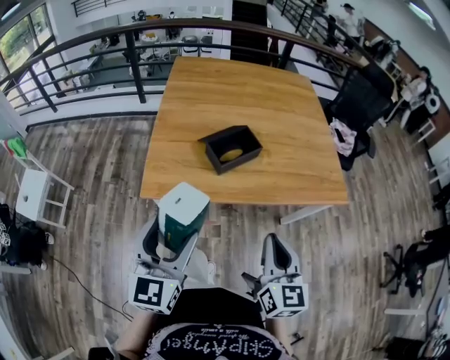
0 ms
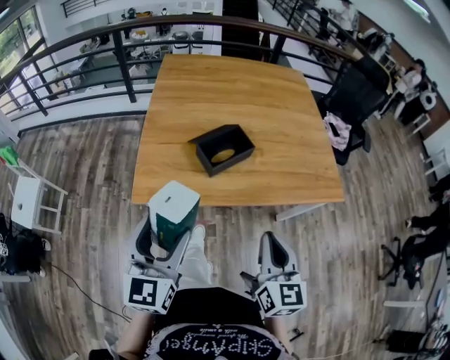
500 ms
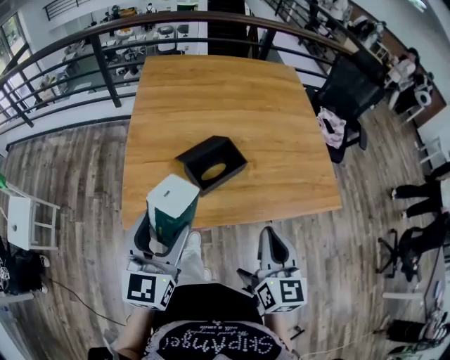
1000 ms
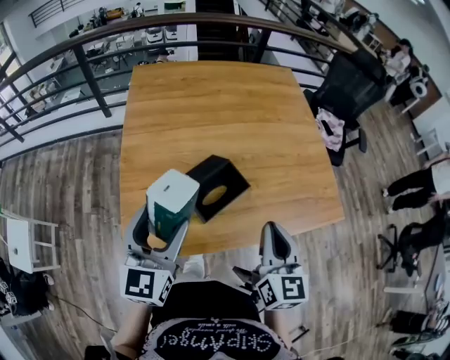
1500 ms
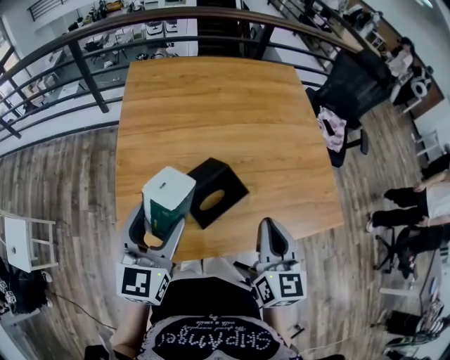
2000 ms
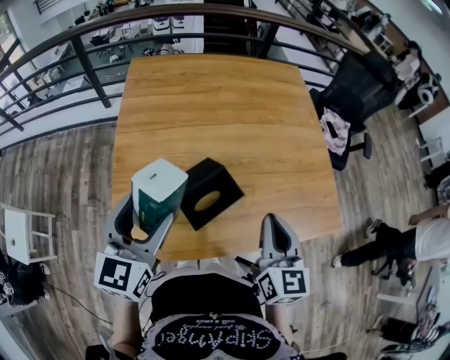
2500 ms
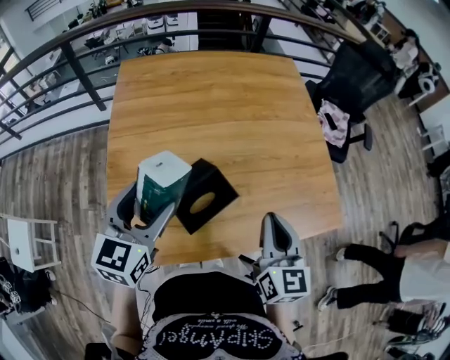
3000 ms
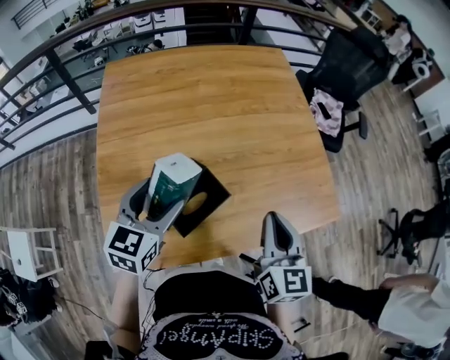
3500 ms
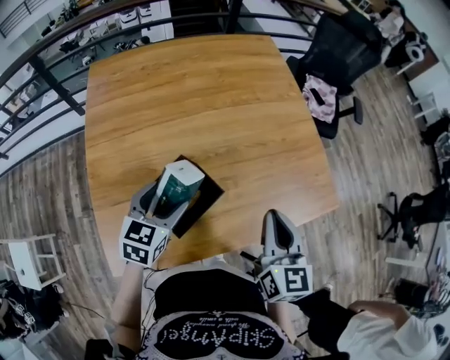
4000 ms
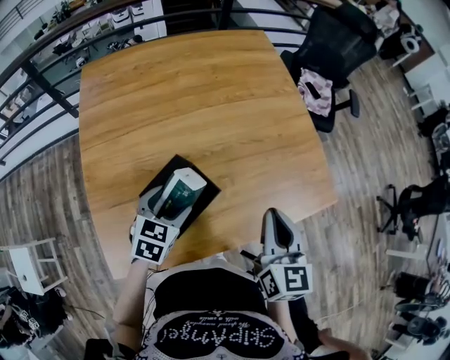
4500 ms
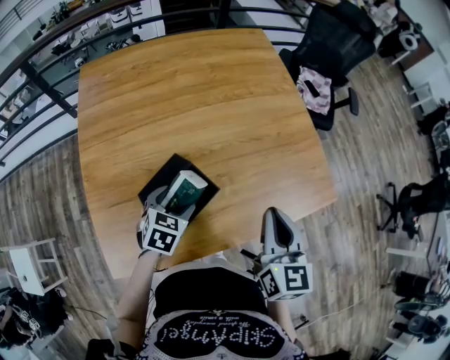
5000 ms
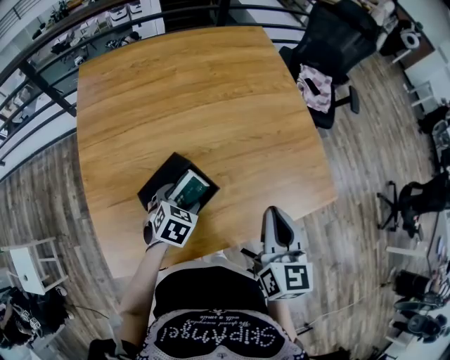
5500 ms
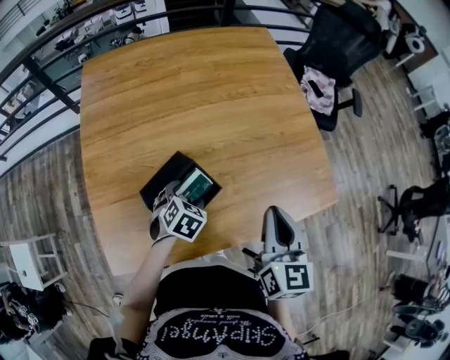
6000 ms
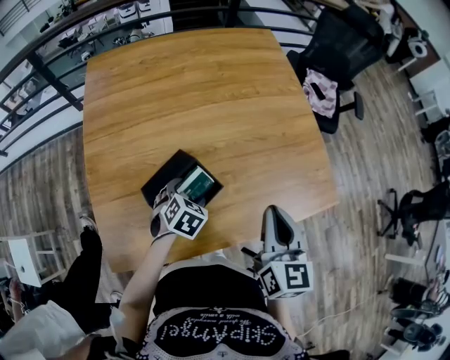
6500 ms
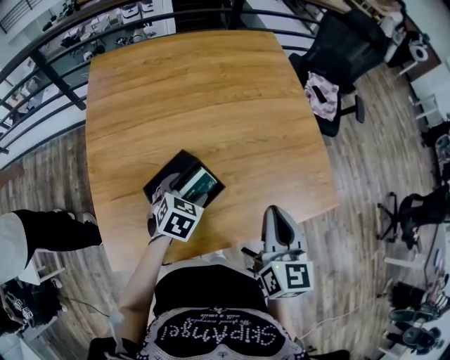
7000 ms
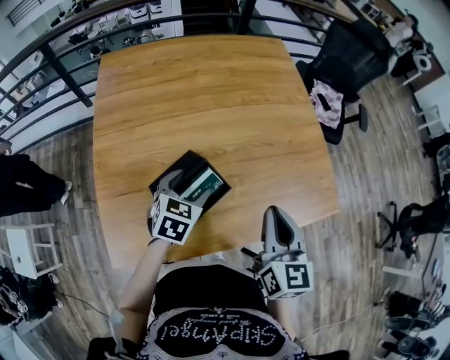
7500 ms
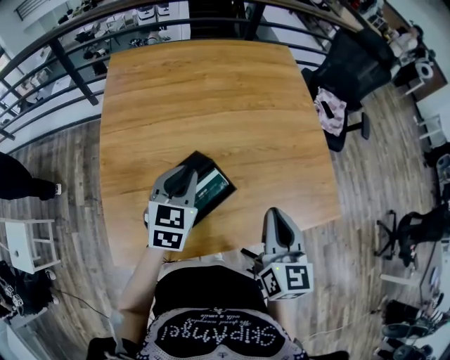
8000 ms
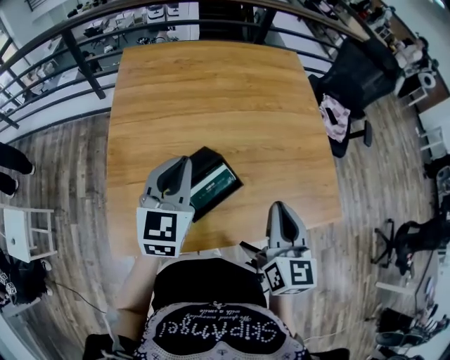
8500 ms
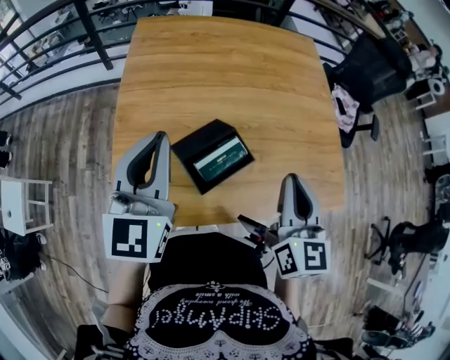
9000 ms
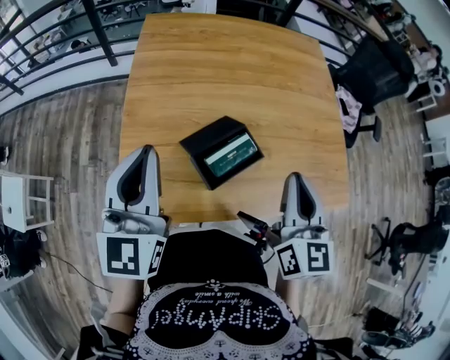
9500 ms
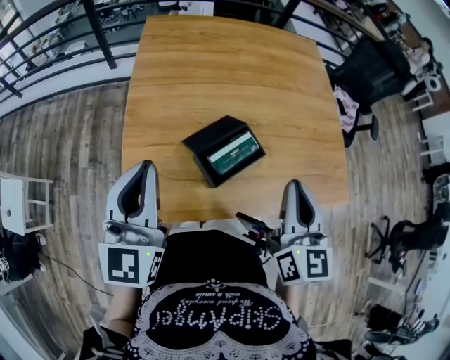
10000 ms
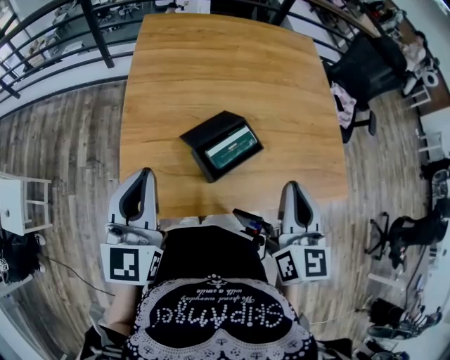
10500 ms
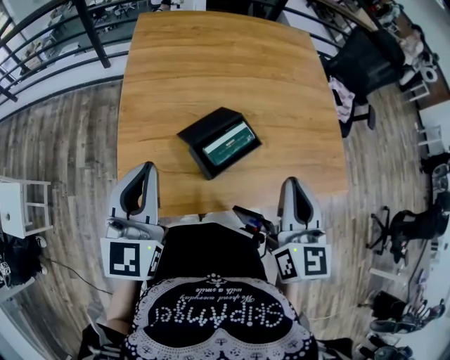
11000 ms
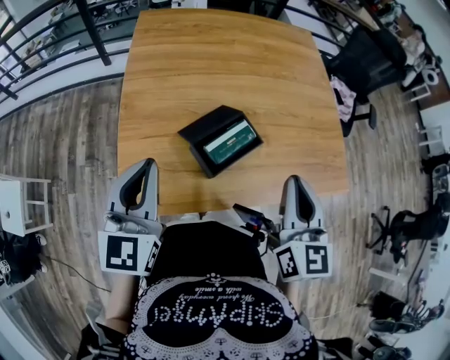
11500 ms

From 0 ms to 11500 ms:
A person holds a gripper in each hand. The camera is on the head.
From 0 ms to 2000 ms: Both grippers move forward, some 25 cm.
From 2000 ms to 4000 ms: The left gripper travels downward, forward and to the right by approximately 20 cm, and swivels roughly 30 degrees, while the right gripper moves to the right and forward, about 10 cm.
From 4000 ms to 6000 ms: The left gripper is displaced downward and to the right by approximately 15 cm, and rotates roughly 30 degrees.
From 6000 ms to 7500 ms: The left gripper shifts approximately 10 cm upward, and swivels about 20 degrees.
From 7500 ms to 9500 ms: The right gripper shifts roughly 10 cm to the left and upward. The left gripper travels upward, to the left and backward by roughly 30 cm, points its fingers approximately 40 degrees further upward, and closes its fingers.
From 9500 ms to 11500 ms: The left gripper shifts approximately 5 cm downward.

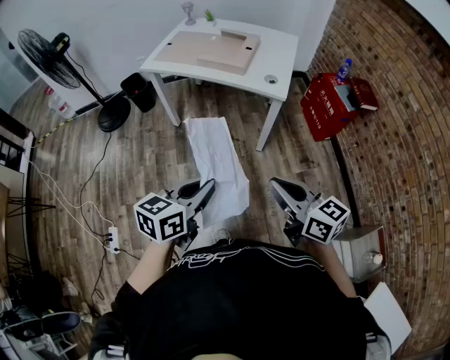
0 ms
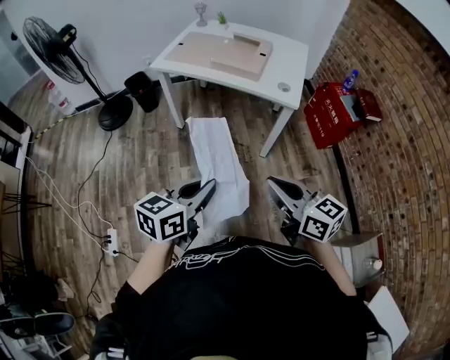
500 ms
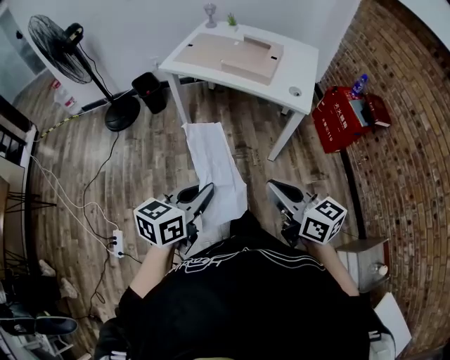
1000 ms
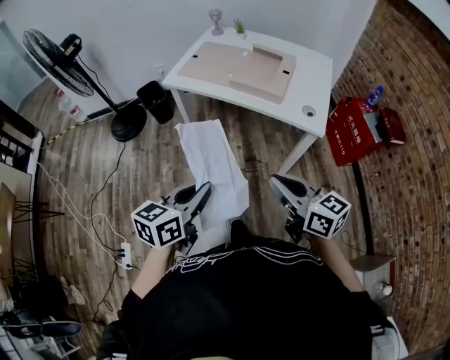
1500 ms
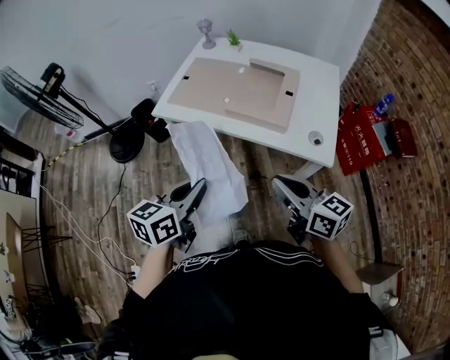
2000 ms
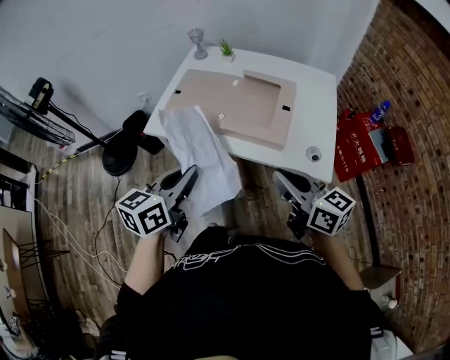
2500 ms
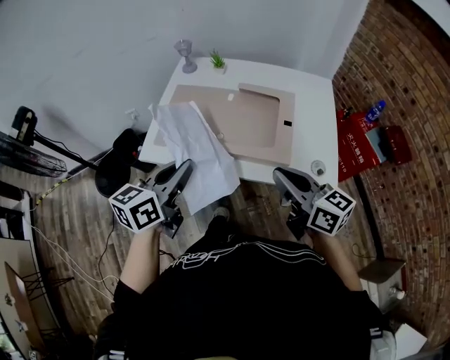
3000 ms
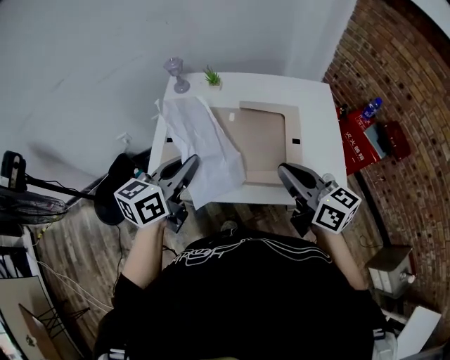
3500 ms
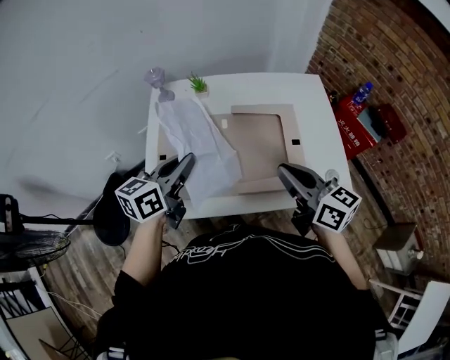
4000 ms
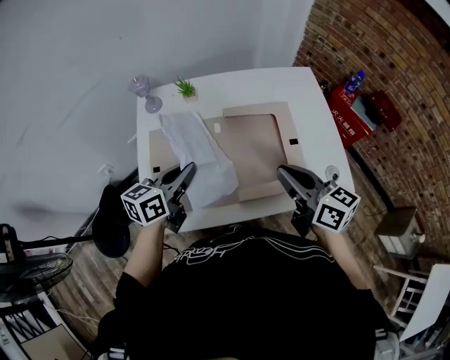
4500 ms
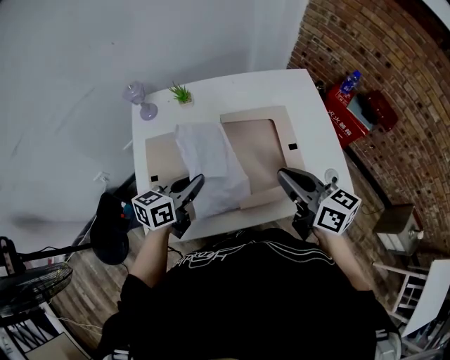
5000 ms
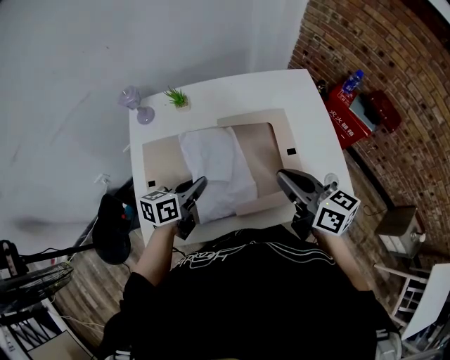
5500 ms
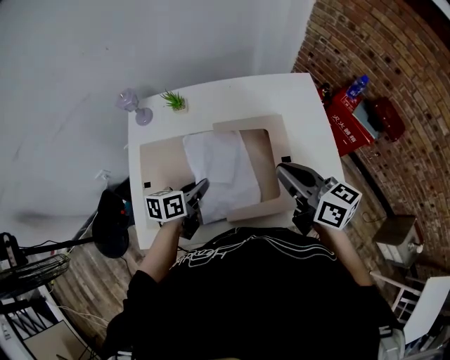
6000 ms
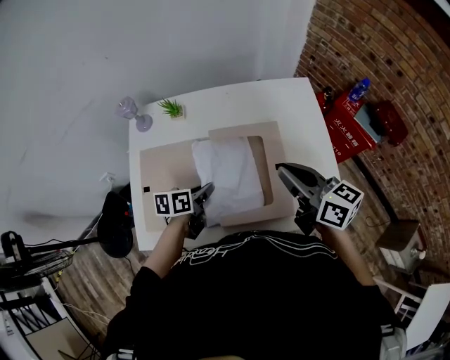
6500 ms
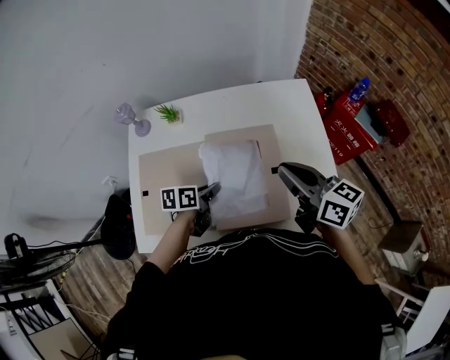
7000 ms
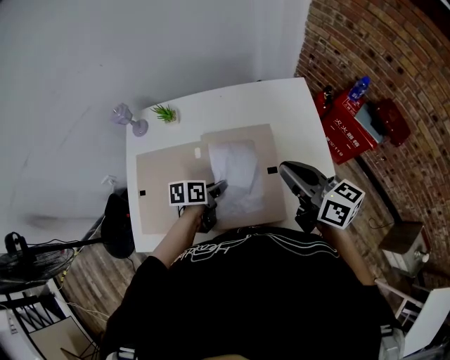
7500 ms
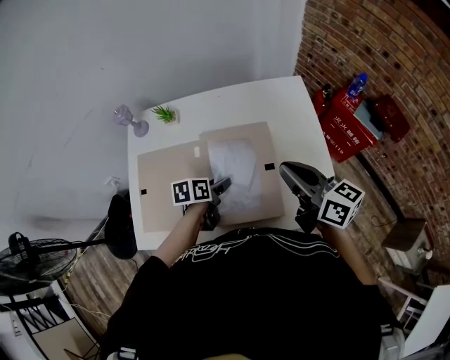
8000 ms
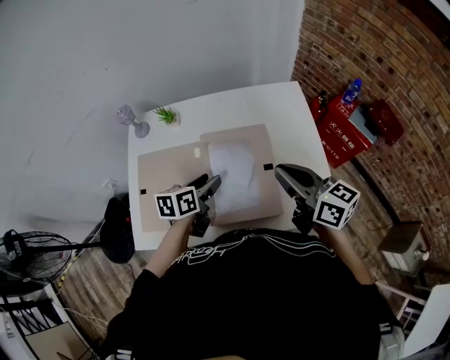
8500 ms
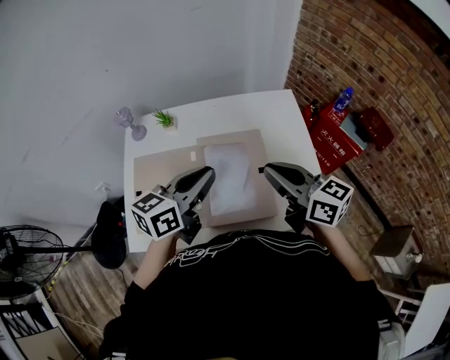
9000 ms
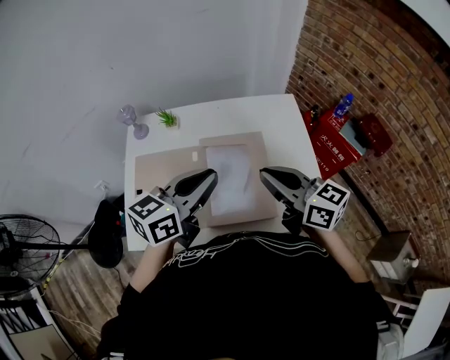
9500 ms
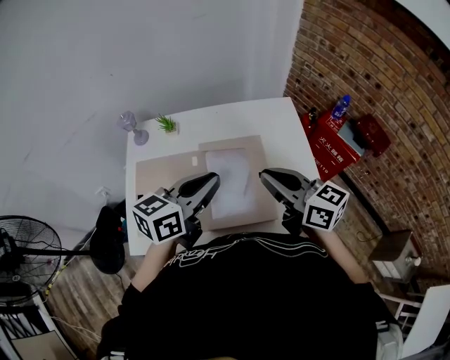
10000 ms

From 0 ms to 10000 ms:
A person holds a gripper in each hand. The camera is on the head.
From 0 ms to 2000 ms: The right gripper goes about 35 cm forward; the left gripper heads forward and to the left, covering about 35 cm.
From 2000 ms to 4000 ms: The left gripper changes place by approximately 40 cm, and swivels approximately 30 degrees. Meanwhile the right gripper shifts by roughly 30 cm, and turns by approximately 30 degrees.
From 4000 ms to 6000 ms: The right gripper heads forward, covering some 10 cm, while the left gripper shifts roughly 15 cm downward, and swivels approximately 20 degrees.
From 6000 ms to 8000 ms: Both grippers travel together to the right, about 10 cm. The left gripper opens its fingers.
From 8000 ms to 10000 ms: The left gripper is displaced upward by roughly 25 cm, points its fingers approximately 30 degrees further upward, and closes, while the right gripper travels to the left and upward by roughly 5 cm.

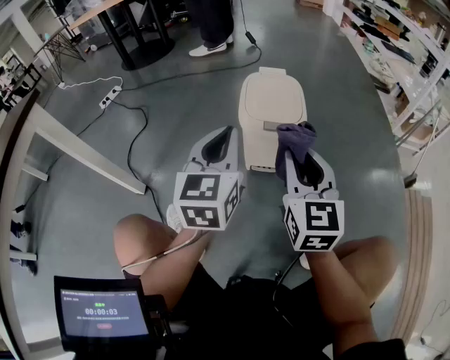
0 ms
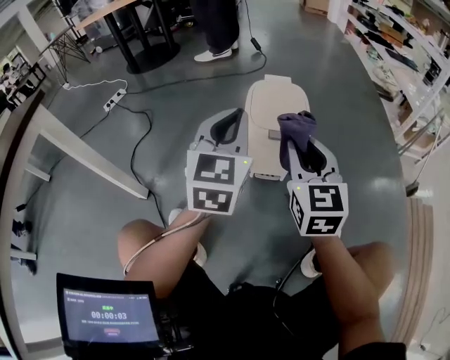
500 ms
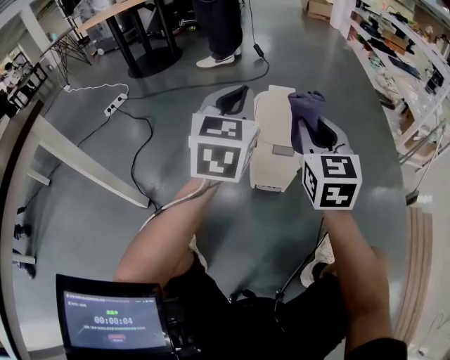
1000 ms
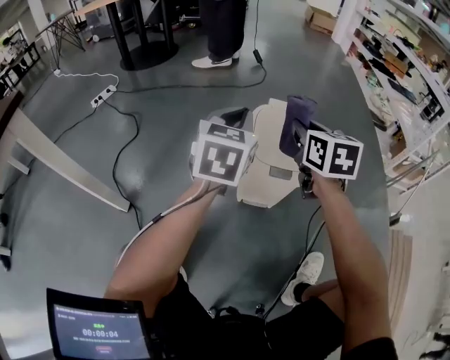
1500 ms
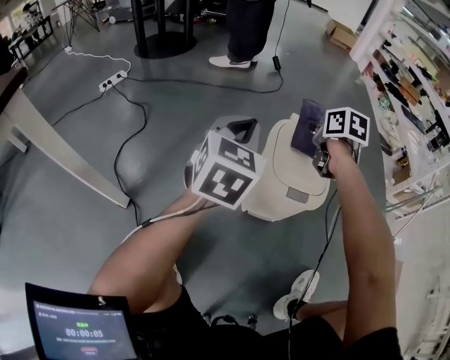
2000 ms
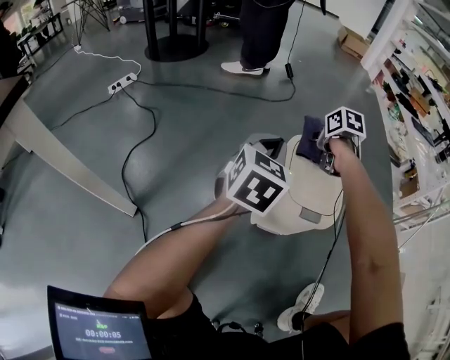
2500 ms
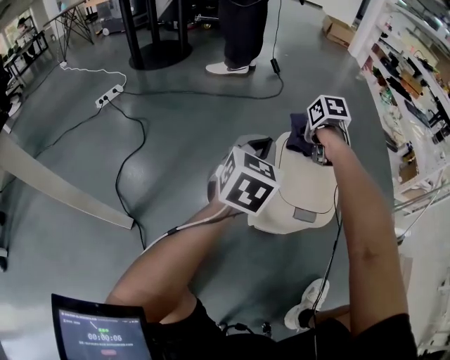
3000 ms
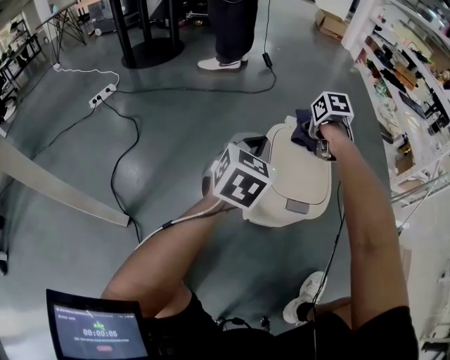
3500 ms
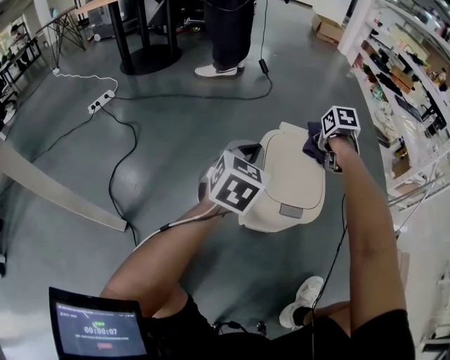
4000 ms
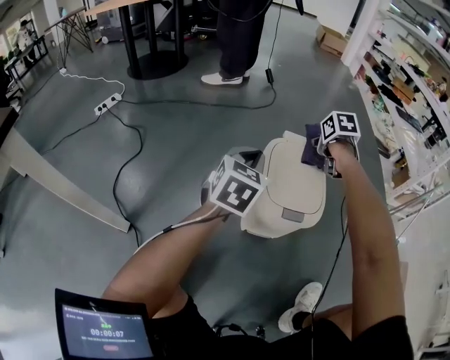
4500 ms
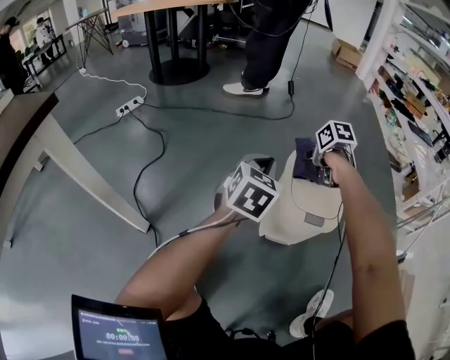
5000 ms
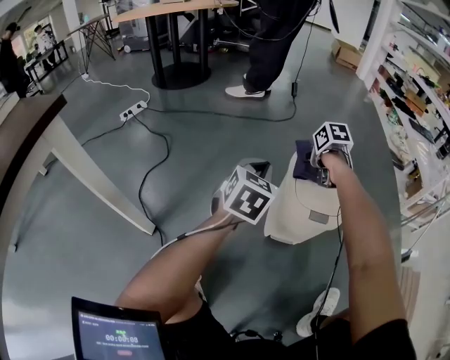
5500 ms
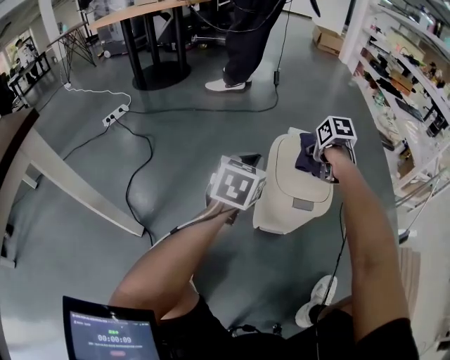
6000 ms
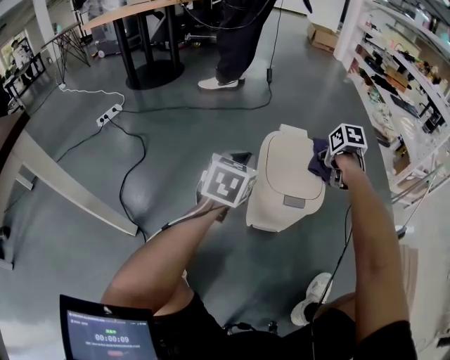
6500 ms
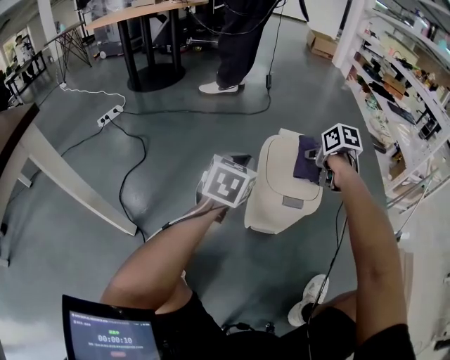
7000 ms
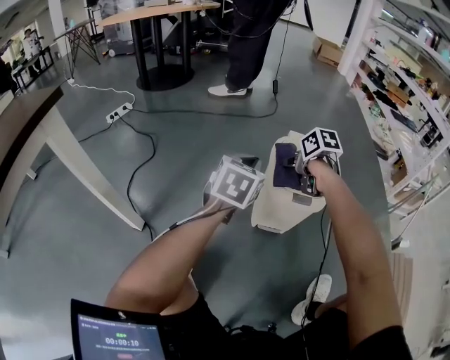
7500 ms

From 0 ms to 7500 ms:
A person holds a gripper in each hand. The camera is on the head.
From 0 ms to 2000 ms: The left gripper moves forward, roughly 20 cm, while the right gripper shifts some 35 cm forward, and angles its fingers downward, by approximately 30 degrees.
From 2000 ms to 4000 ms: The left gripper goes about 10 cm downward, to the right and forward; the right gripper shifts about 15 cm to the right, downward and forward, and changes its angle by some 20 degrees.
From 4000 ms to 5500 ms: The right gripper moves to the left, approximately 15 cm, while the left gripper travels to the left by roughly 5 cm.
From 5500 ms to 7500 ms: The right gripper shifts roughly 10 cm backward, and moves roughly 15 cm to the right and comes back.
